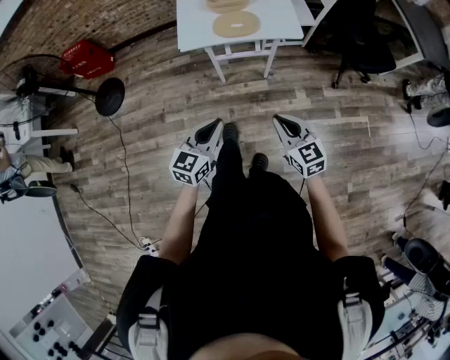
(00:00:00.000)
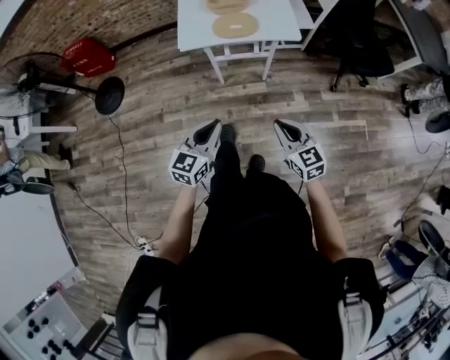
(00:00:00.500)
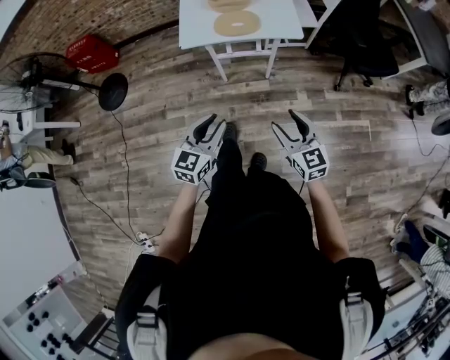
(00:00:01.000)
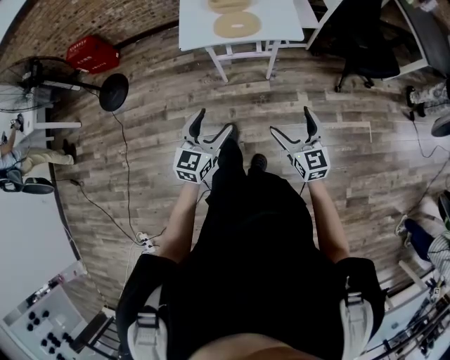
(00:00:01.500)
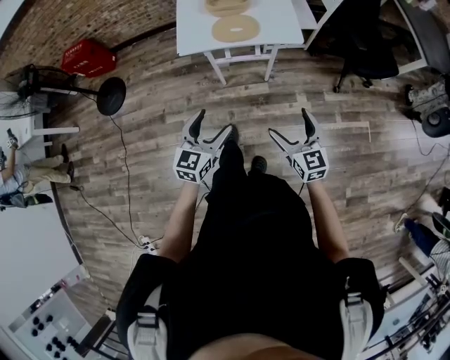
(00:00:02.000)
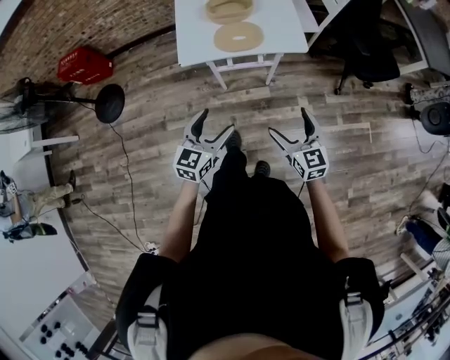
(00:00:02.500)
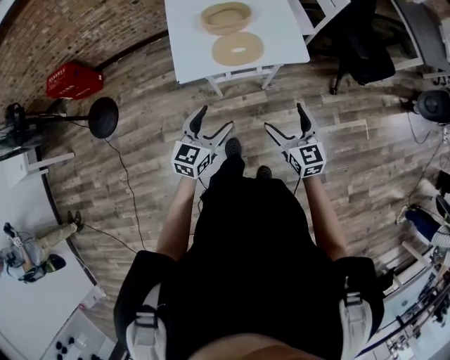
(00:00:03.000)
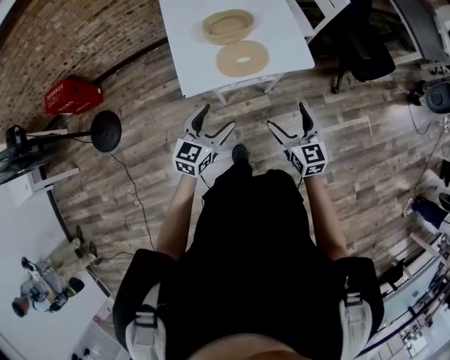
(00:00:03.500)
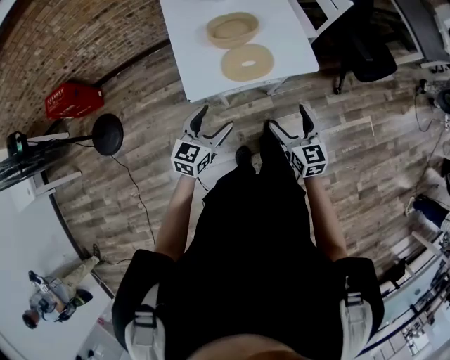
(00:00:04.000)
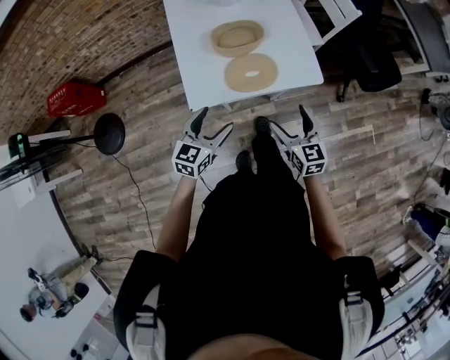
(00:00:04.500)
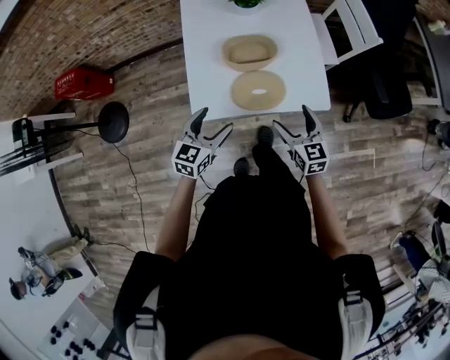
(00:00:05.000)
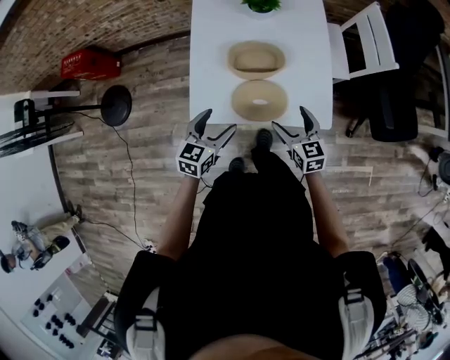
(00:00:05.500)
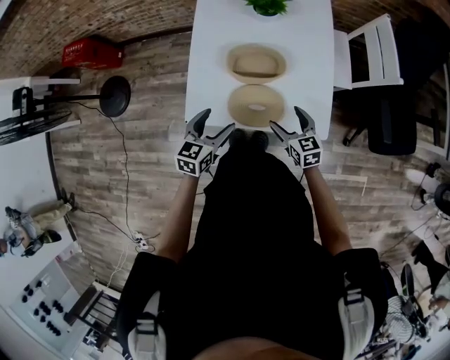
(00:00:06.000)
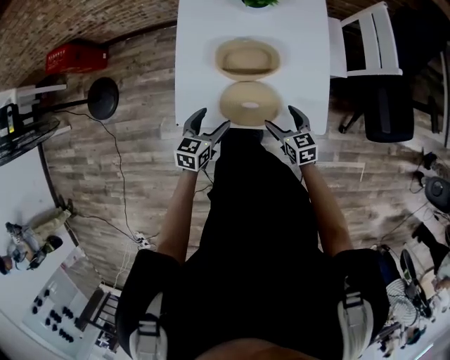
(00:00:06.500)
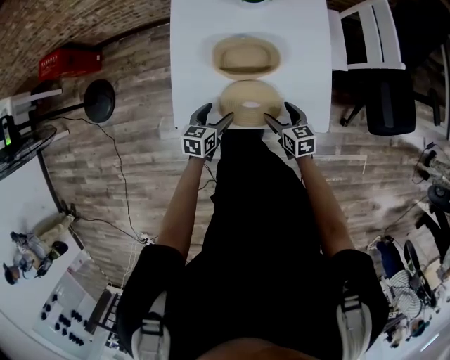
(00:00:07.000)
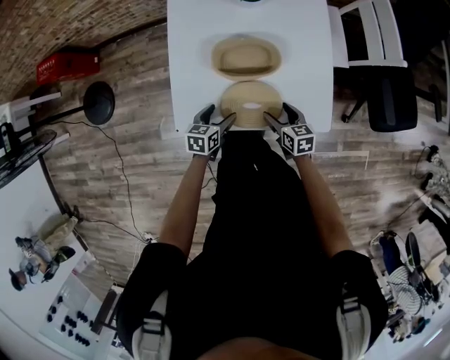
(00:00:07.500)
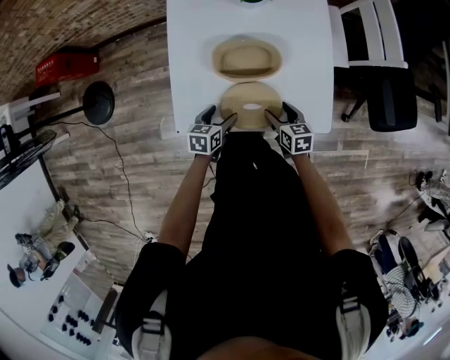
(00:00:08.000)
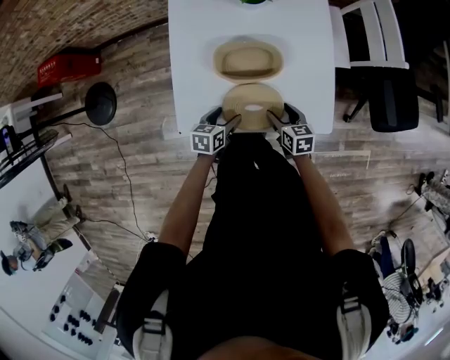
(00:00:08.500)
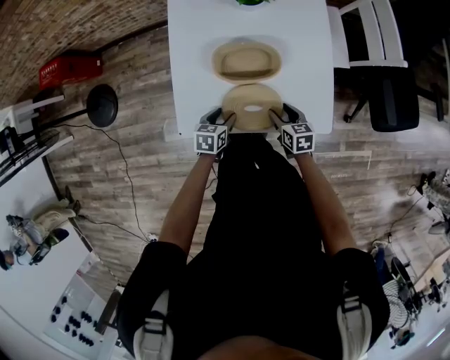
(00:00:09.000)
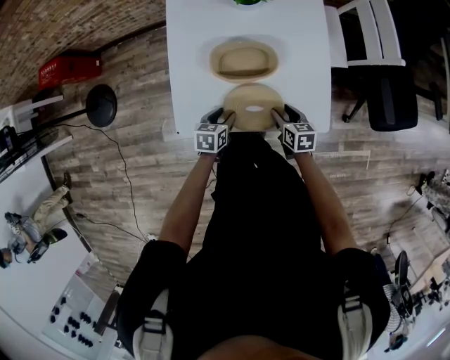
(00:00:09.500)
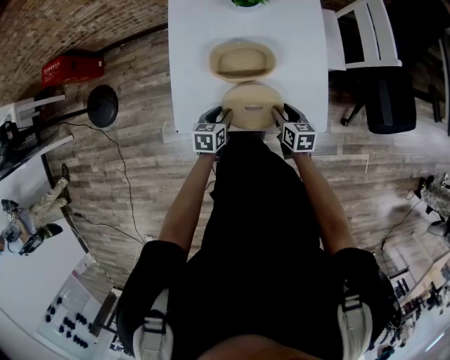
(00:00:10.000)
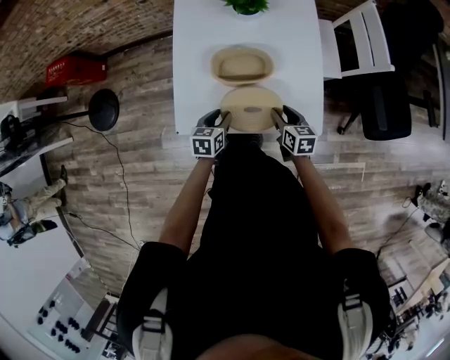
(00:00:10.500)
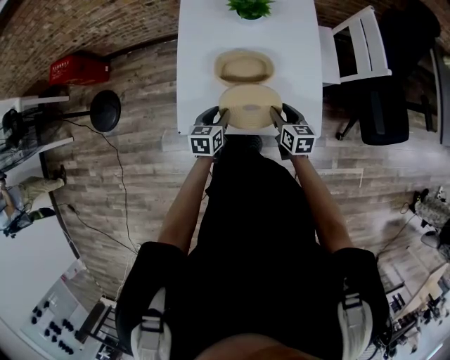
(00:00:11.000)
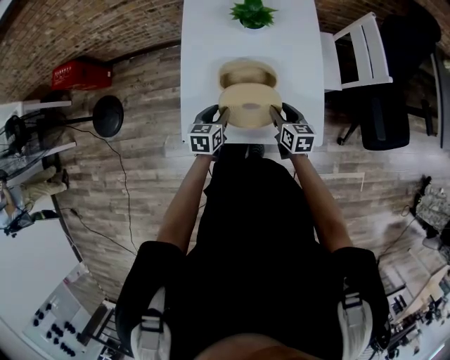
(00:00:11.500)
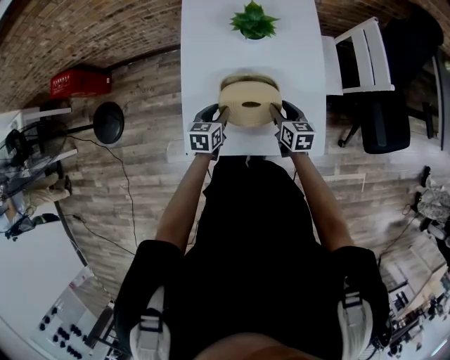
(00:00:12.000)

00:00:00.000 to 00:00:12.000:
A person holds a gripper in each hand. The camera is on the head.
00:00:00.000 to 00:00:02.000: The right gripper ends up roughly 5 cm from where it was, and opens its fingers, while the left gripper opens.
00:00:02.000 to 00:00:04.000: Both grippers move forward and to the left, about 30 cm.
00:00:04.000 to 00:00:06.000: The right gripper travels forward and downward by some 30 cm, and swivels about 30 degrees. Meanwhile the left gripper is displaced forward by approximately 20 cm, and rotates roughly 30 degrees.
00:00:06.000 to 00:00:08.000: The left gripper is displaced downward by roughly 15 cm, and swivels approximately 20 degrees; the right gripper is displaced downward by roughly 10 cm, and changes its angle by approximately 20 degrees.
00:00:08.000 to 00:00:10.000: The left gripper closes its fingers.
00:00:10.000 to 00:00:12.000: Both grippers move forward and upward, approximately 15 cm.

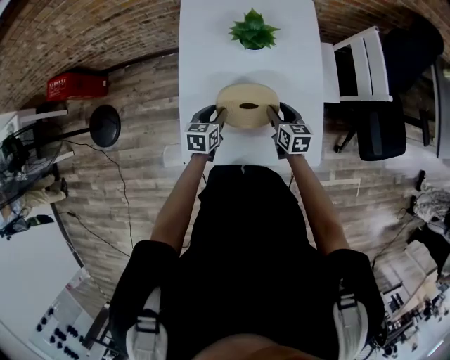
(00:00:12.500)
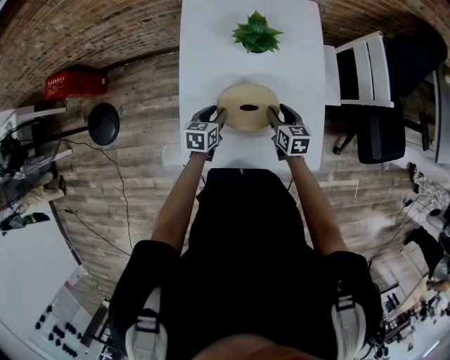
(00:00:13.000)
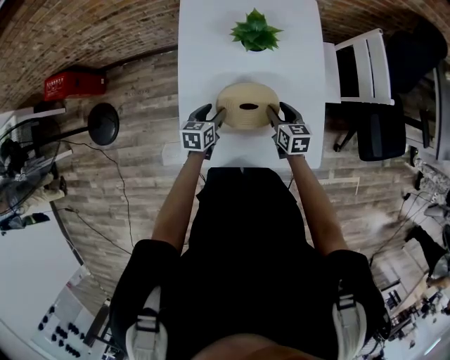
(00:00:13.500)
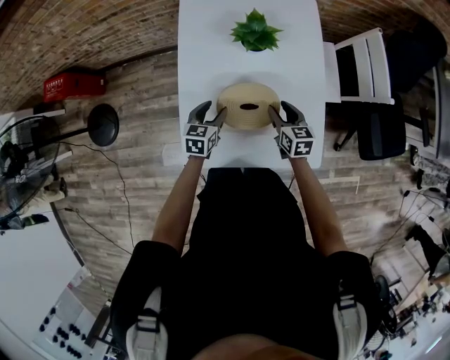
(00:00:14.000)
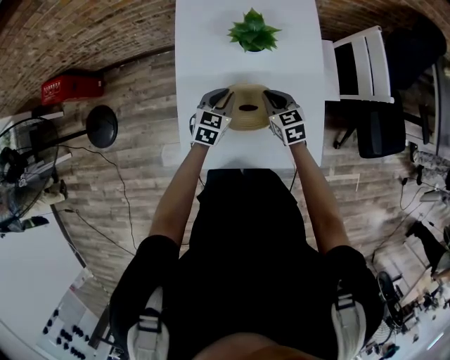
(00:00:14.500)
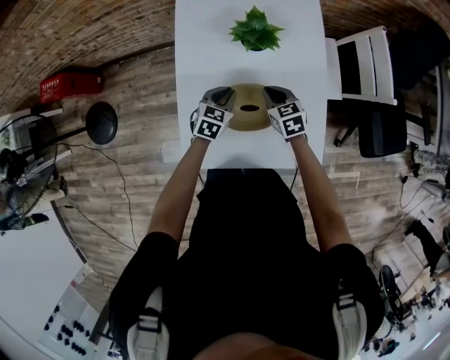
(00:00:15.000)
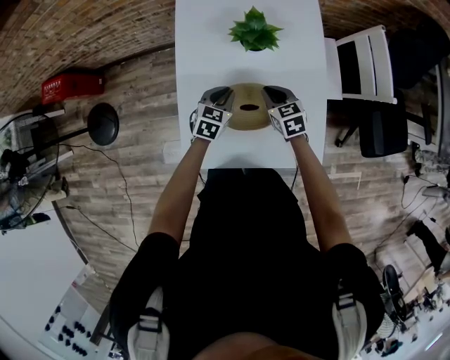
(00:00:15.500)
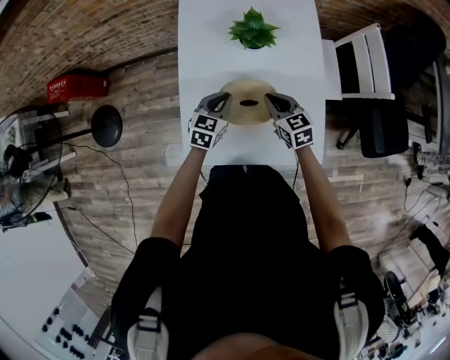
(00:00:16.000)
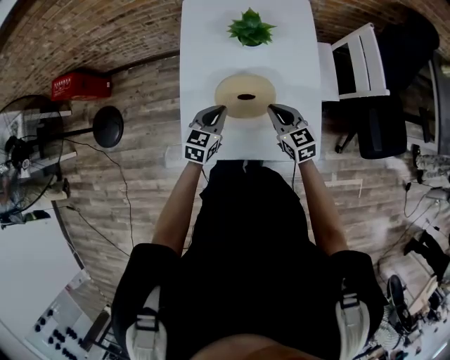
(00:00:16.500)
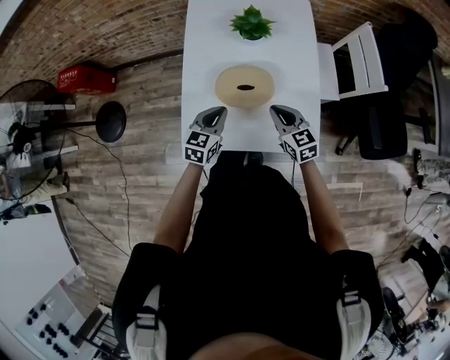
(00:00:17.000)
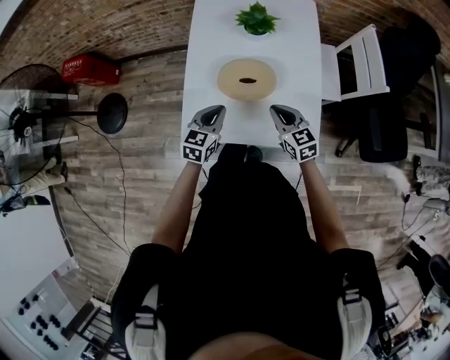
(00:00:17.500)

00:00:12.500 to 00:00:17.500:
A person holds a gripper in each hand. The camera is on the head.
00:00:12.500 to 00:00:15.000: The right gripper heads forward and to the left, covering roughly 10 cm, and rotates about 20 degrees, while the left gripper goes roughly 10 cm forward, and turns by some 20 degrees.
00:00:15.000 to 00:00:17.500: Both grippers move backward and upward, about 20 cm.

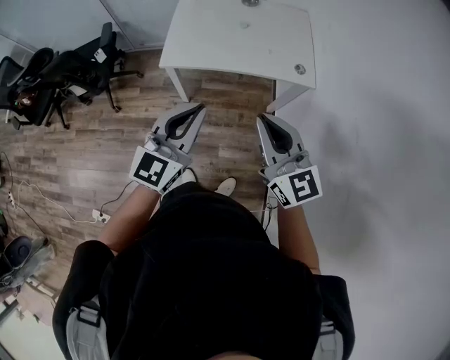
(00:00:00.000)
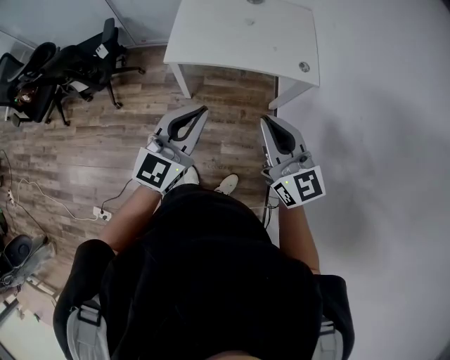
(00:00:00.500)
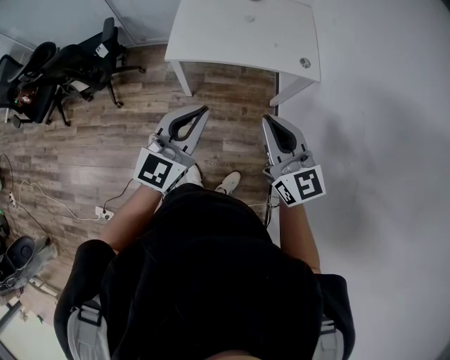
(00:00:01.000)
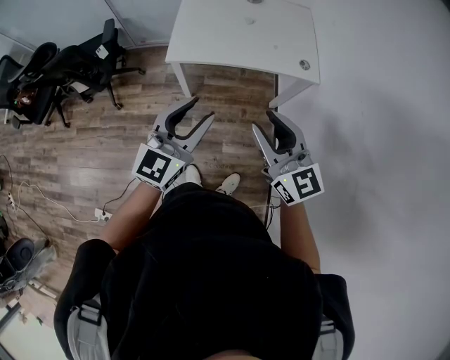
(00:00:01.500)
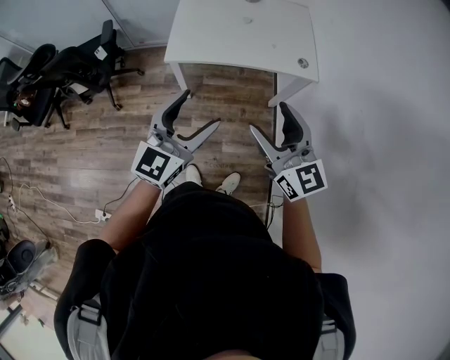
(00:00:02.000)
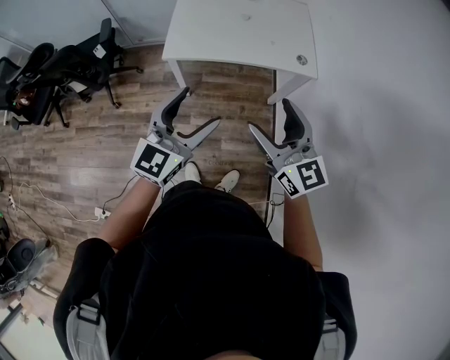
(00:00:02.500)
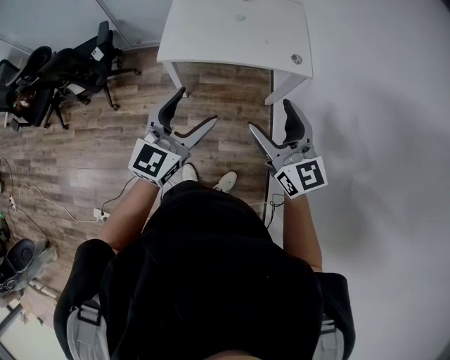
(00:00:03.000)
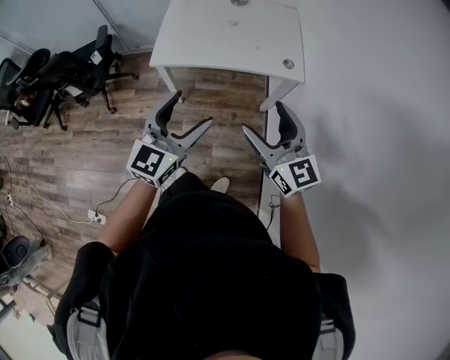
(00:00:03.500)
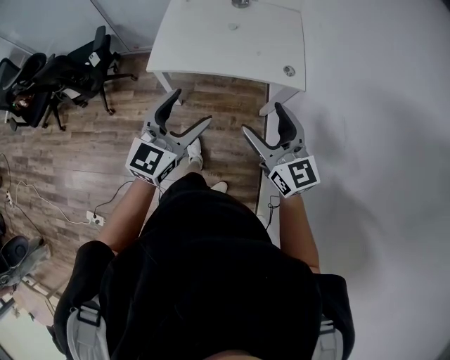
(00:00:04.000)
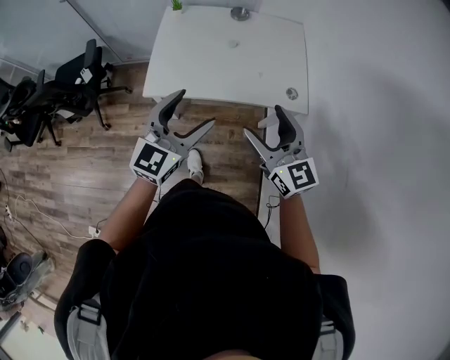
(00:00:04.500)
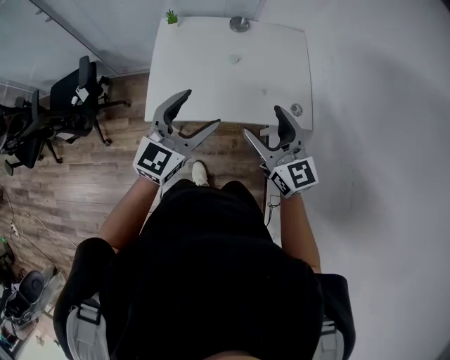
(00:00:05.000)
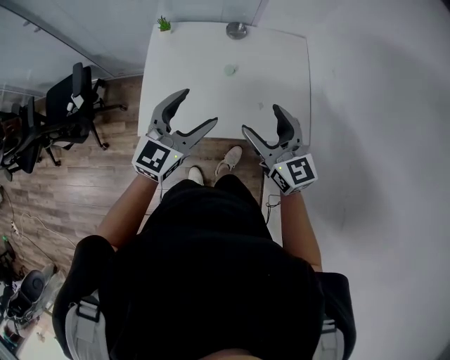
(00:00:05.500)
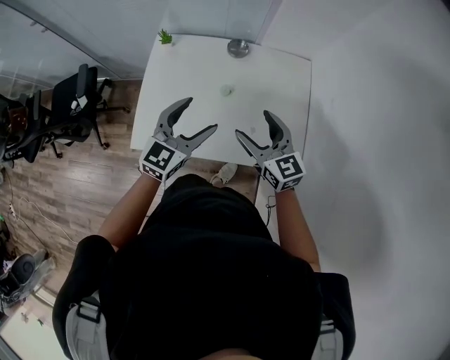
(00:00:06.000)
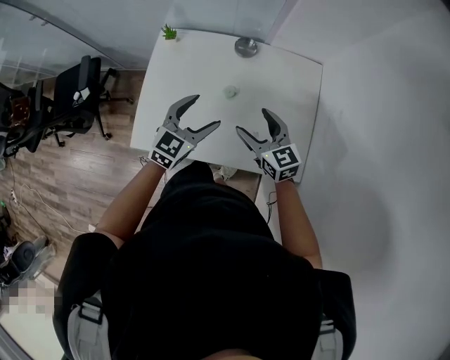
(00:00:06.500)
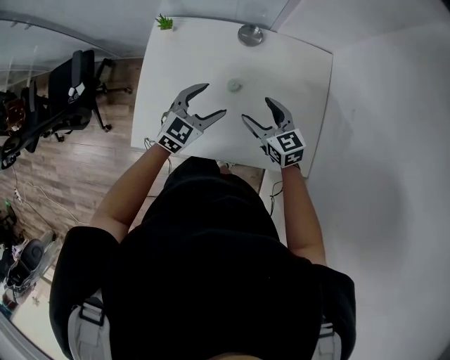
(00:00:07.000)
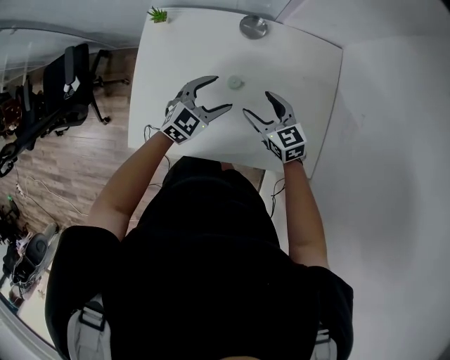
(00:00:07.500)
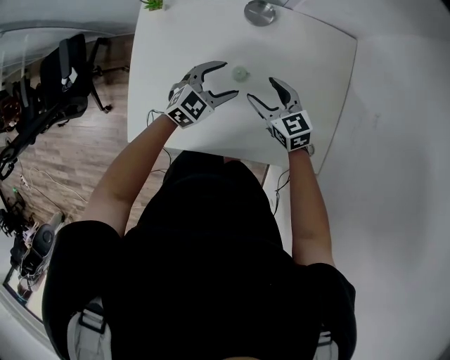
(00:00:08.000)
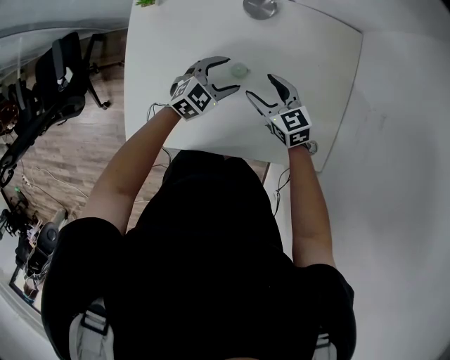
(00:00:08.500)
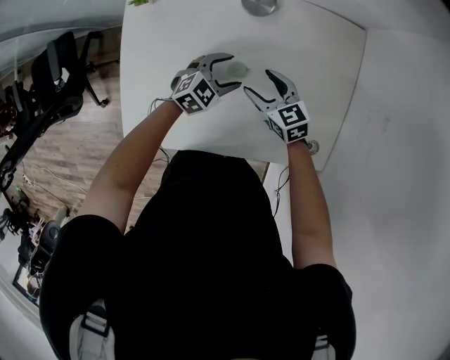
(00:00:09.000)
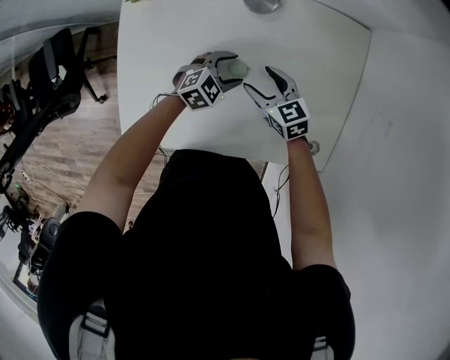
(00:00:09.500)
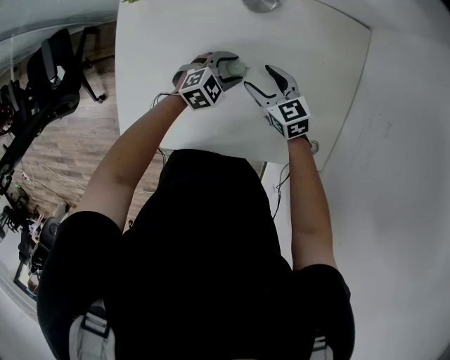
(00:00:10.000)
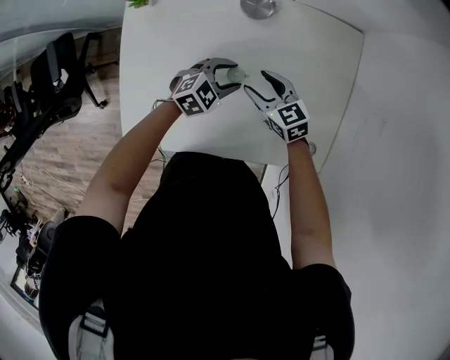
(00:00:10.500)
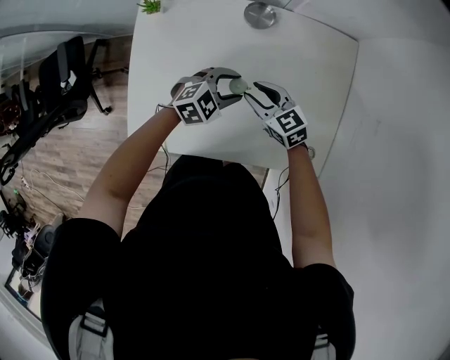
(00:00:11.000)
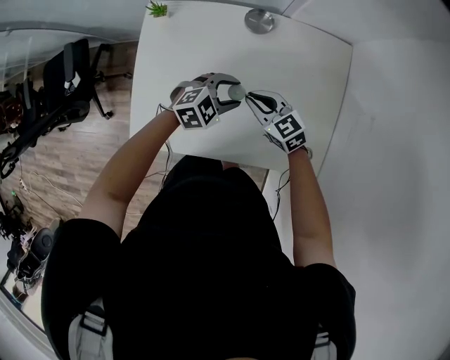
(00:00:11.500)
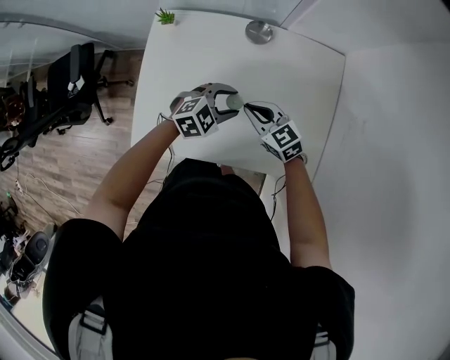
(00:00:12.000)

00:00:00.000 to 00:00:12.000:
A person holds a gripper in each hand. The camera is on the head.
00:00:00.000 to 00:00:02.000: The right gripper opens its fingers, while the left gripper opens up.
00:00:02.000 to 00:00:04.000: The two grippers go roughly 10 cm to the right and forward.
00:00:04.000 to 00:00:06.000: The pair of grippers is taken forward, some 40 cm.
00:00:06.000 to 00:00:08.000: The two grippers go approximately 30 cm downward and forward. The right gripper rotates some 20 degrees. The left gripper swivels roughly 30 degrees.
00:00:08.000 to 00:00:10.000: The left gripper shifts about 10 cm downward; the right gripper travels downward by about 5 cm.
00:00:10.000 to 00:00:12.000: The two grippers go some 15 cm upward. The right gripper closes its fingers.
